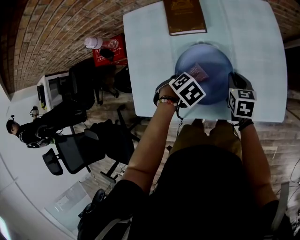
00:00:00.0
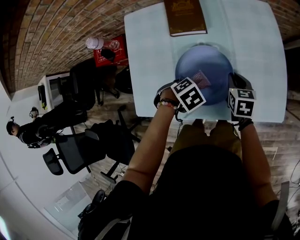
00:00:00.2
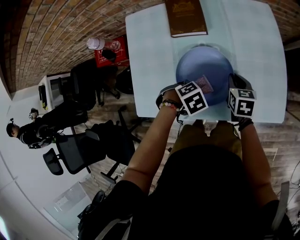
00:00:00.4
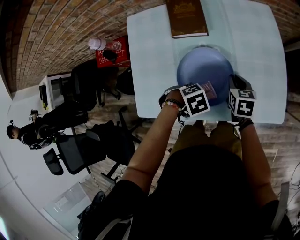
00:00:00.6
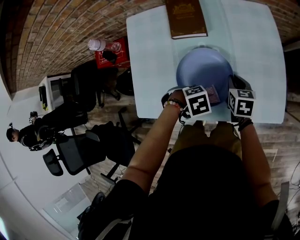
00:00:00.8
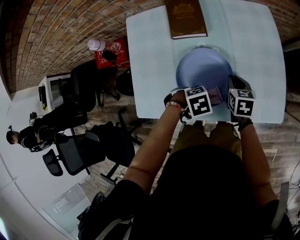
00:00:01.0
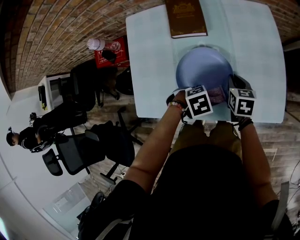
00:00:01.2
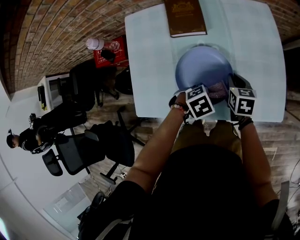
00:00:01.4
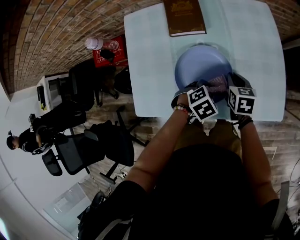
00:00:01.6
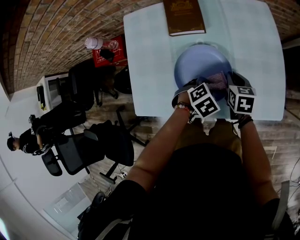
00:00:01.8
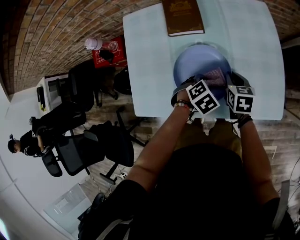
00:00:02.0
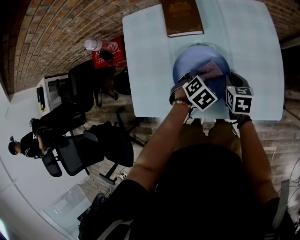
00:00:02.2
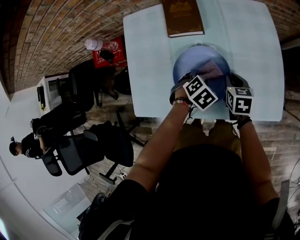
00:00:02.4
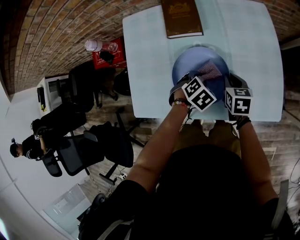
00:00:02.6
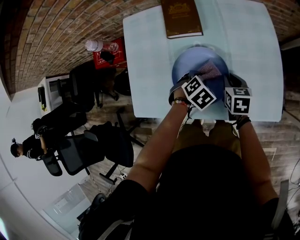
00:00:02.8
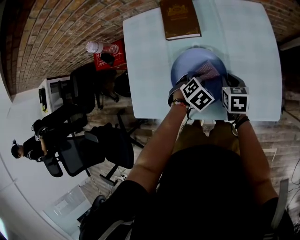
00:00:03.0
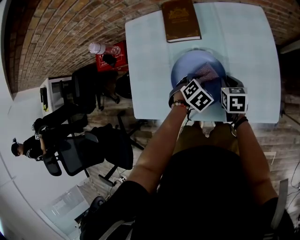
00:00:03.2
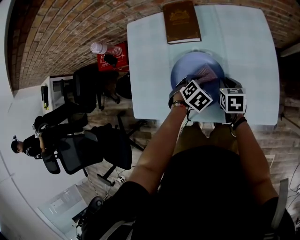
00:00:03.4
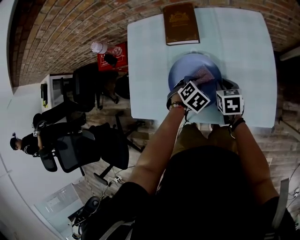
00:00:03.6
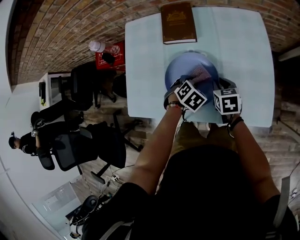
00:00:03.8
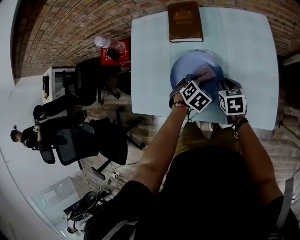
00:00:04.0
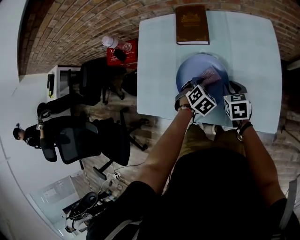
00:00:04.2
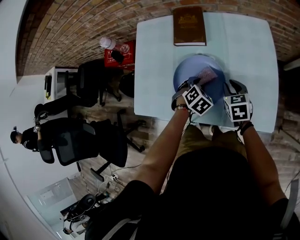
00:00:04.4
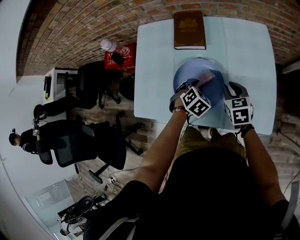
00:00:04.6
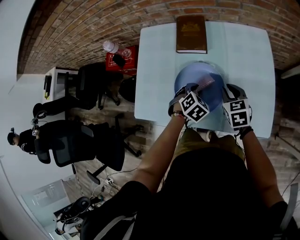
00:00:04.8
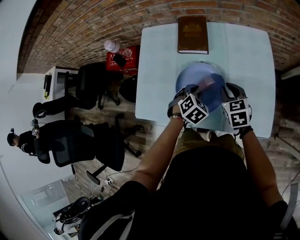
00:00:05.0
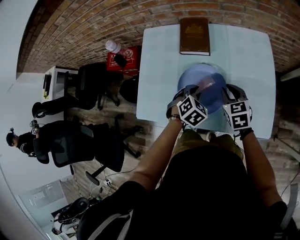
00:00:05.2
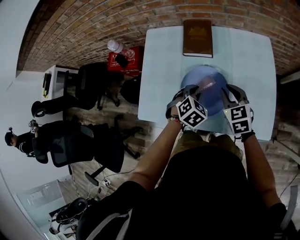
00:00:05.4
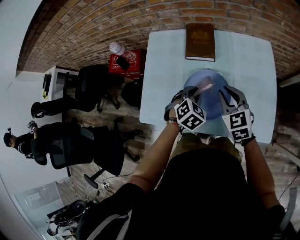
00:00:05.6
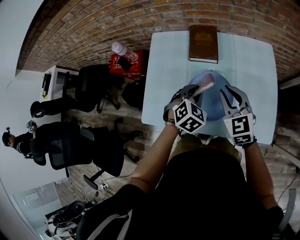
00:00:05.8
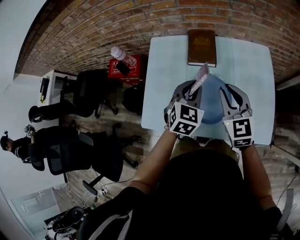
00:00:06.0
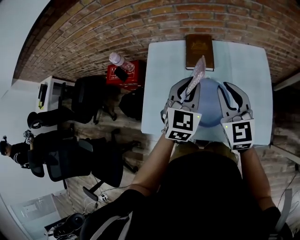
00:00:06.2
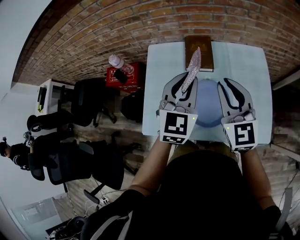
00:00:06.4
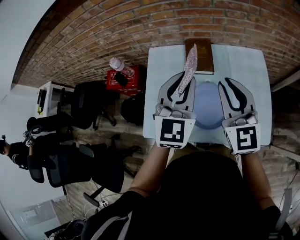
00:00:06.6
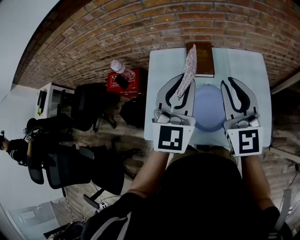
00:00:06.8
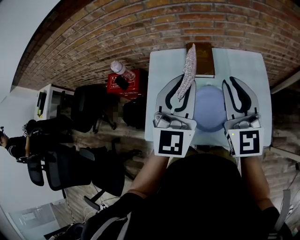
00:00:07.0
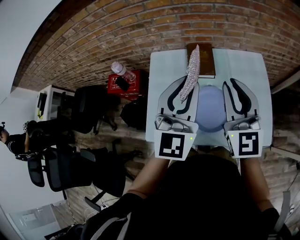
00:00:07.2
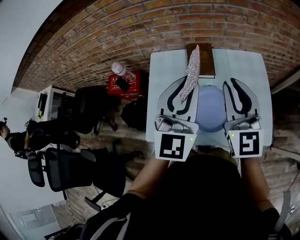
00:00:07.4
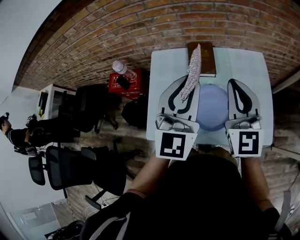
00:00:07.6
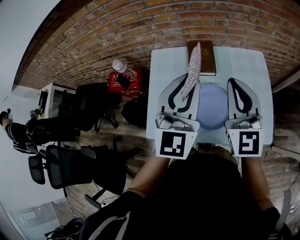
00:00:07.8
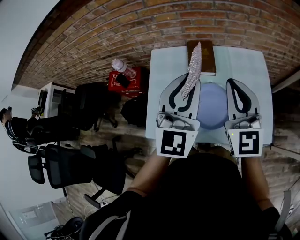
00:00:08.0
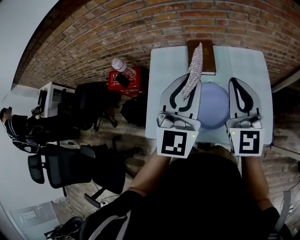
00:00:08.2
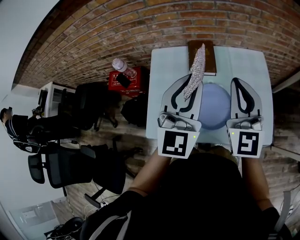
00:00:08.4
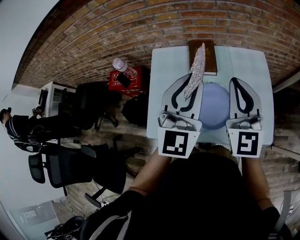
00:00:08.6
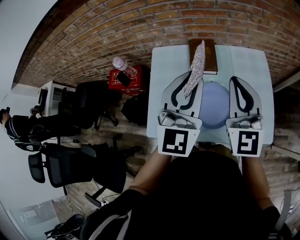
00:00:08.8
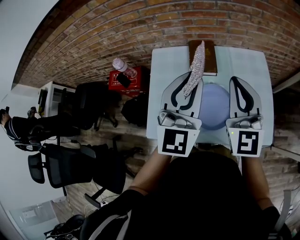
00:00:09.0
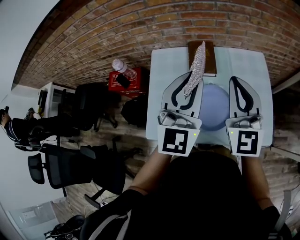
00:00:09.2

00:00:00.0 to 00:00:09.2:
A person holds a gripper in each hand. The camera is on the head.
00:00:00.0 to 00:00:01.6: The left gripper shifts by roughly 10 cm.
00:00:01.6 to 00:00:03.0: The left gripper changes place by approximately 5 cm.
00:00:03.0 to 00:00:04.6: The right gripper is displaced upward by some 5 cm.
00:00:04.6 to 00:00:06.2: The left gripper shifts roughly 25 cm upward, and angles its fingers upward, by about 40 degrees. Meanwhile the right gripper travels upward and to the left by about 25 cm, and points its fingers about 30 degrees further upward.
00:00:06.2 to 00:00:07.6: The grippers both shift upward by about 10 cm. The left gripper turns by some 30 degrees.
00:00:07.6 to 00:00:09.2: The grippers stay close to where they were, moving slightly.

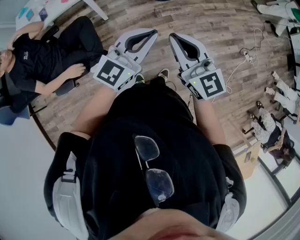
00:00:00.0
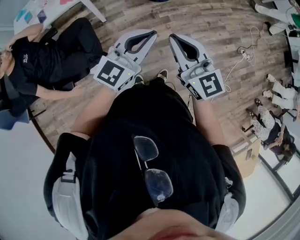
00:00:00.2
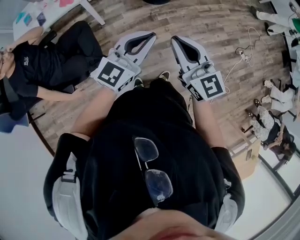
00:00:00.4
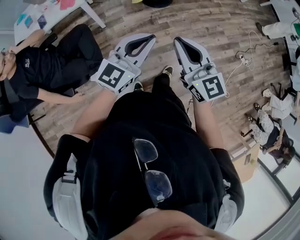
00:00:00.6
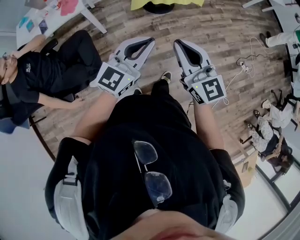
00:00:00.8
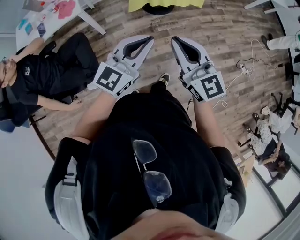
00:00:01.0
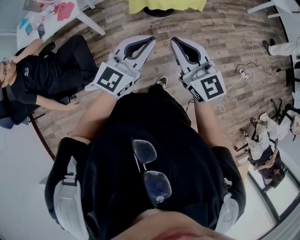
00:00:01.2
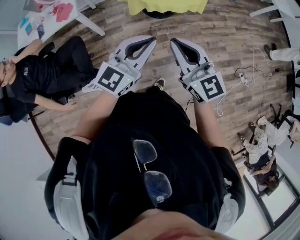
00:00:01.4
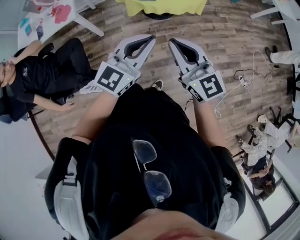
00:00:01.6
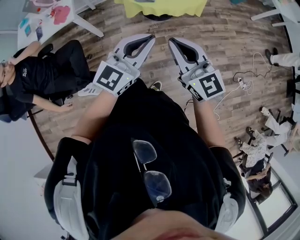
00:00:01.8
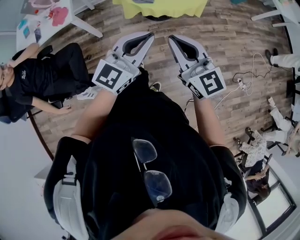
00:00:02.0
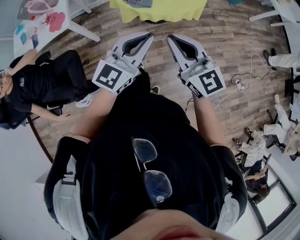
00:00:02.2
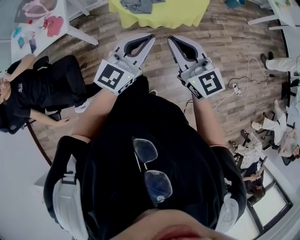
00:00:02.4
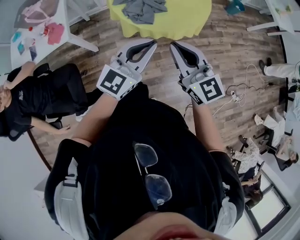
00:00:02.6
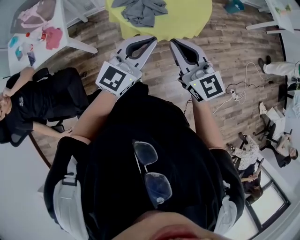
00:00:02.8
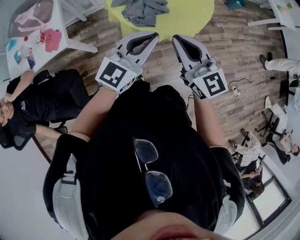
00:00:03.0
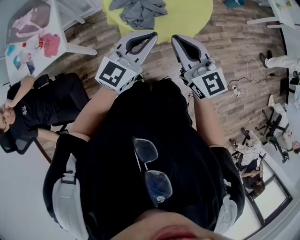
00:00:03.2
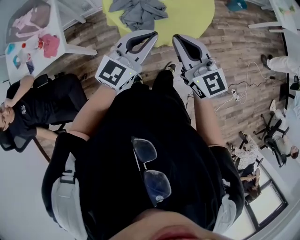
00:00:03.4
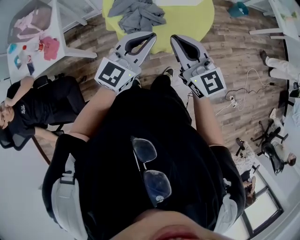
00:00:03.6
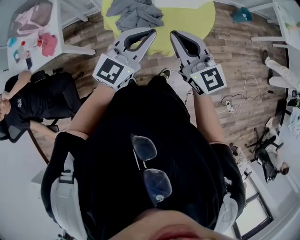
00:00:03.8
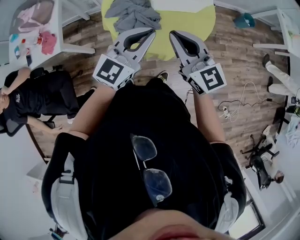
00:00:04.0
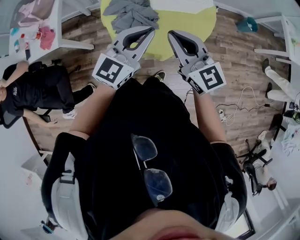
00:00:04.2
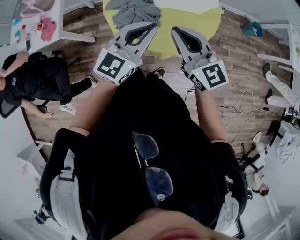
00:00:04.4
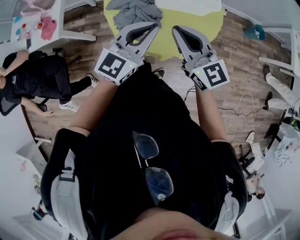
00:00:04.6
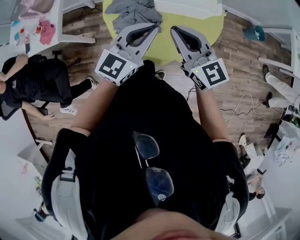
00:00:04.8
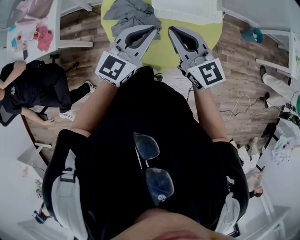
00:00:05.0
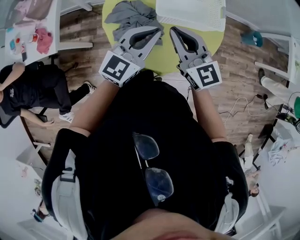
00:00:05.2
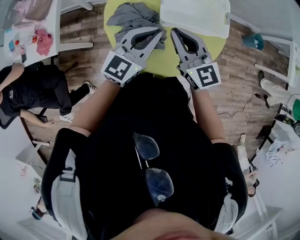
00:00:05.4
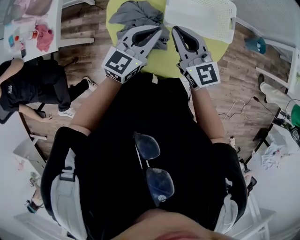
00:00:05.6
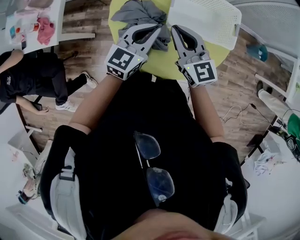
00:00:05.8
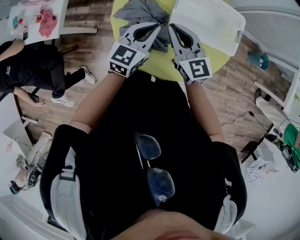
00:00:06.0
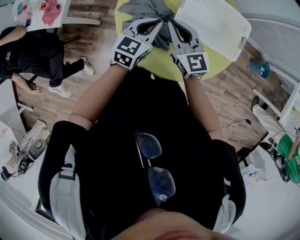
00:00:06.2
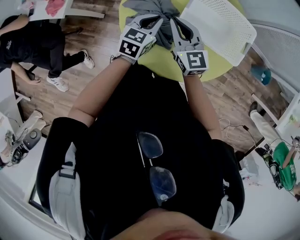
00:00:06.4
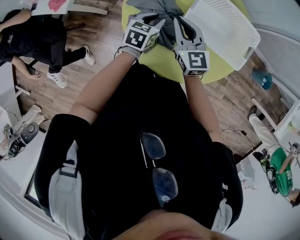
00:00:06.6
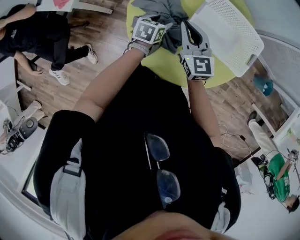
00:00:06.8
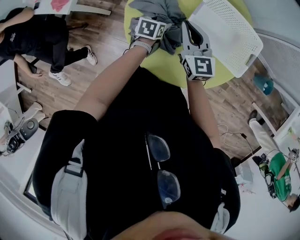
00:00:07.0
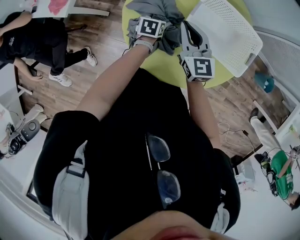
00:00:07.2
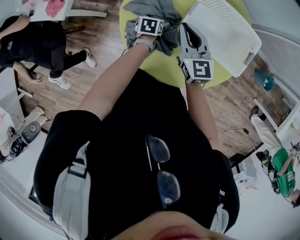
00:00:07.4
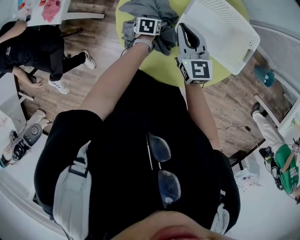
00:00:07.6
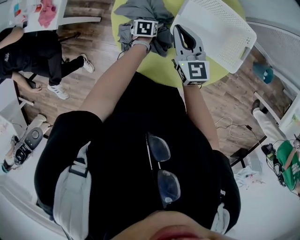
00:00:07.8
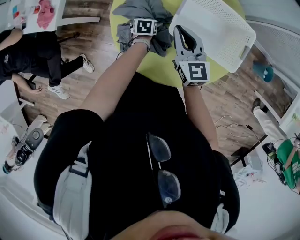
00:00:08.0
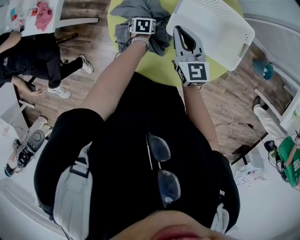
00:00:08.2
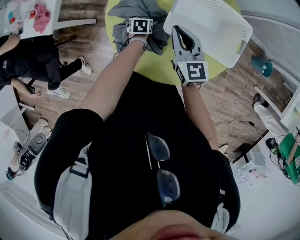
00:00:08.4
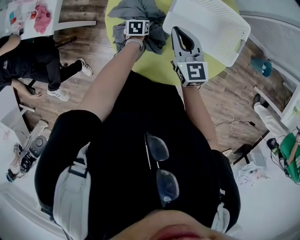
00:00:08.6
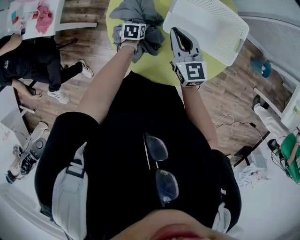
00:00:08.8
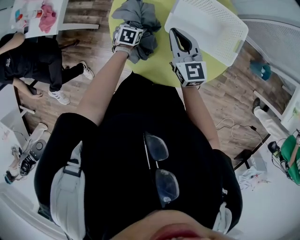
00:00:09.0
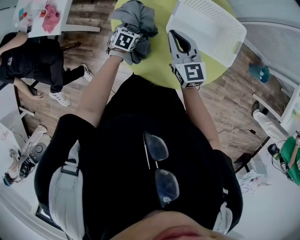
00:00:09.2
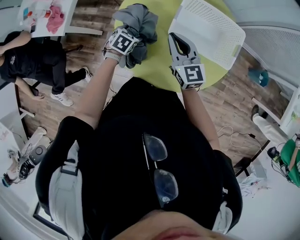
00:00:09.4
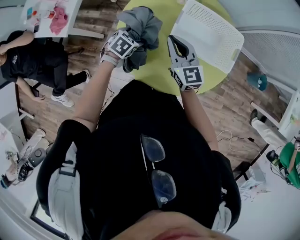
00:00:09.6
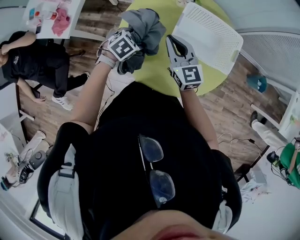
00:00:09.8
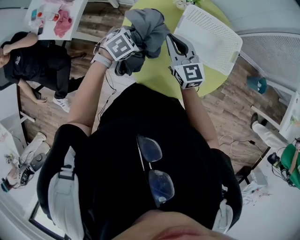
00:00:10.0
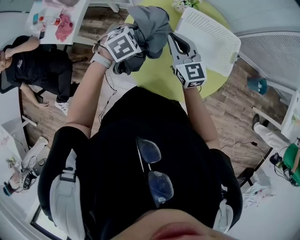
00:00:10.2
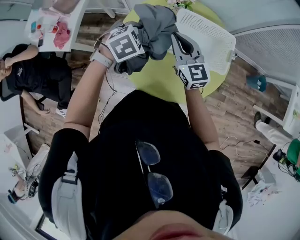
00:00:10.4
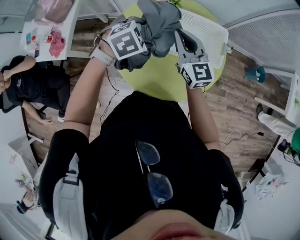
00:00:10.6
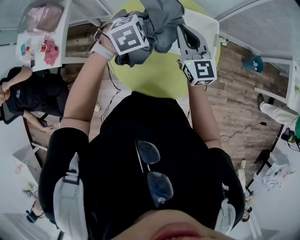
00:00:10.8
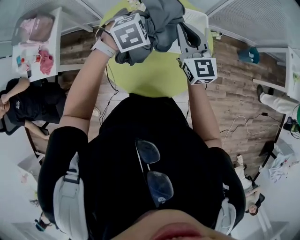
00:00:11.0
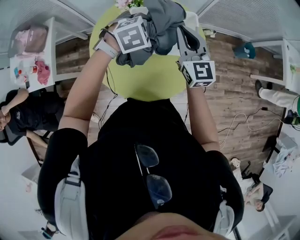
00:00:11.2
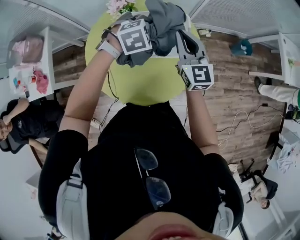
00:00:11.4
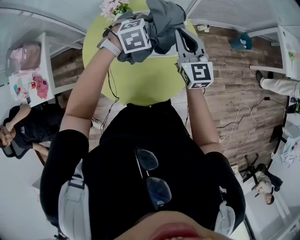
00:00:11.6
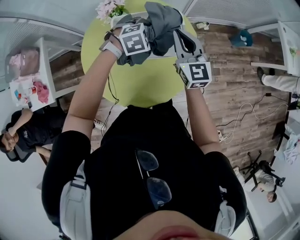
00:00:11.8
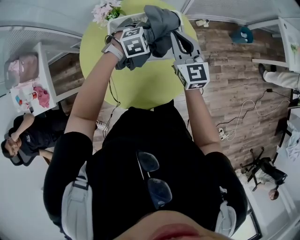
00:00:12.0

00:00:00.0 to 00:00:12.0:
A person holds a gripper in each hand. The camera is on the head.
00:00:00.0 to 00:00:01.6: The two grippers go about 20 cm forward and to the right.
00:00:01.6 to 00:00:03.0: Both grippers move forward, some 25 cm.
00:00:03.0 to 00:00:04.4: The two grippers go approximately 20 cm forward and to the right.
00:00:04.4 to 00:00:06.0: Both grippers move forward and downward, some 25 cm. The left gripper changes its angle by roughly 20 degrees.
00:00:06.0 to 00:00:07.6: The right gripper heads downward, covering approximately 5 cm; the left gripper is displaced downward by about 30 cm, points its fingers about 40 degrees further downward, and opens its fingers.
00:00:07.6 to 00:00:09.0: There are only small adjustments of the grippers.
00:00:09.0 to 00:00:10.4: The left gripper shifts some 25 cm upward, and rotates around the line of its fingers by some 50 degrees, clockwise from behind. The right gripper heads upward, covering some 10 cm.
00:00:10.4 to 00:00:12.0: The right gripper ends up some 25 cm from where it was, and changes its angle by about 30 degrees. The left gripper moves roughly 30 cm, and turns by about 30 degrees.

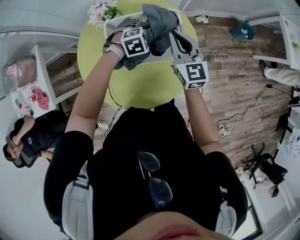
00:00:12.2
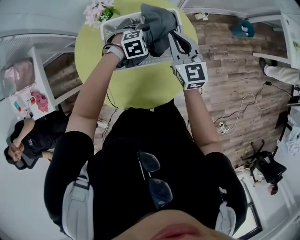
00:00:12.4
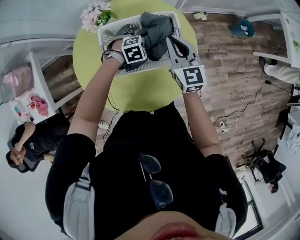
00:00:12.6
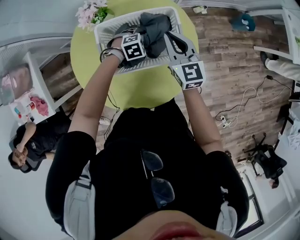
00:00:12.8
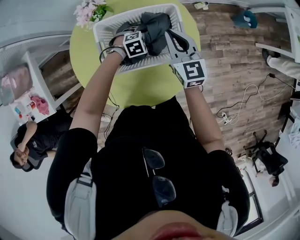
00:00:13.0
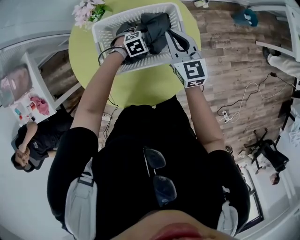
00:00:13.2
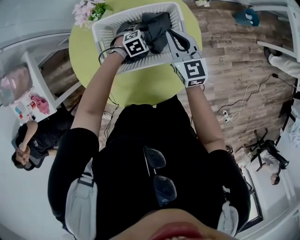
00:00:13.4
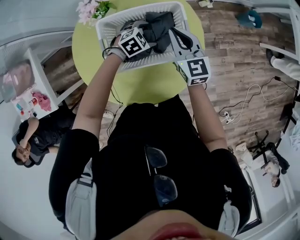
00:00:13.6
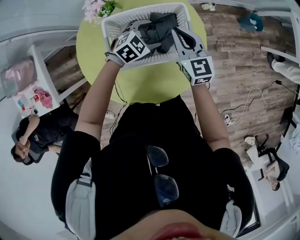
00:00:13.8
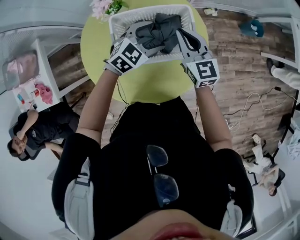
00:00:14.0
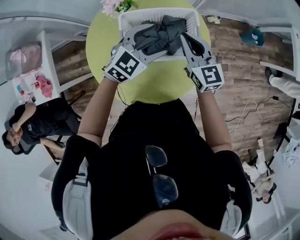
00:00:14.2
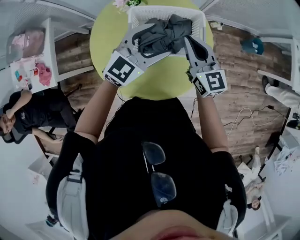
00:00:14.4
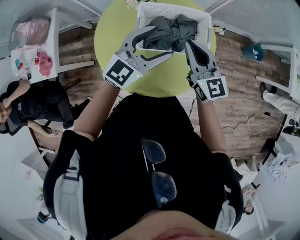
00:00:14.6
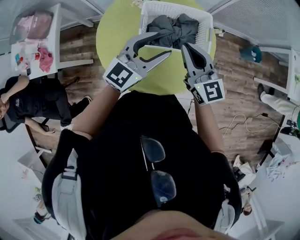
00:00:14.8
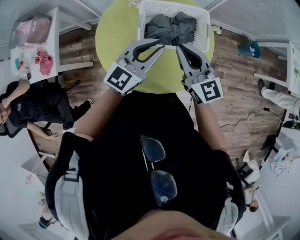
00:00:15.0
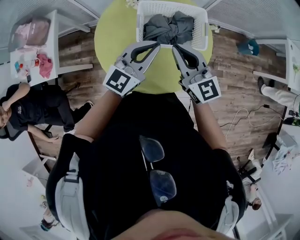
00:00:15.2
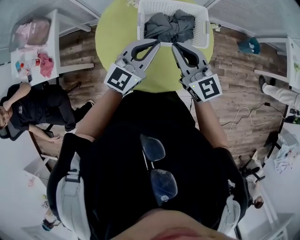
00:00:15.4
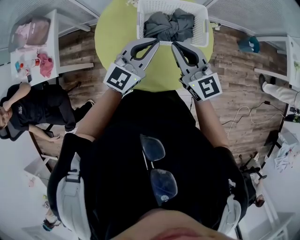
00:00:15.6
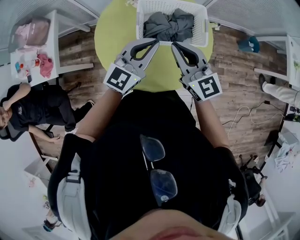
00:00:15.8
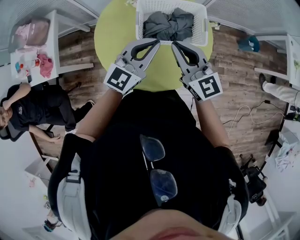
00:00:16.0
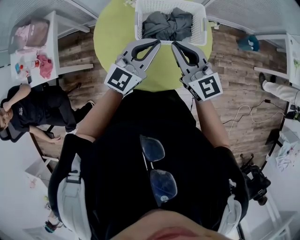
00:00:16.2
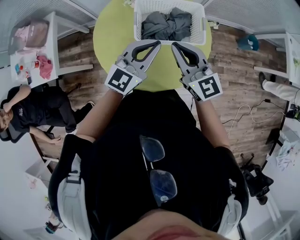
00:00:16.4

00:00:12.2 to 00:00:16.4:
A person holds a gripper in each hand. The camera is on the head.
00:00:12.2 to 00:00:13.6: Both grippers travel together downward, approximately 10 cm.
00:00:13.6 to 00:00:15.0: The left gripper shifts some 30 cm upward, points its fingers some 60 degrees further upward, and closes. The right gripper changes place by some 25 cm, and rotates approximately 20 degrees.
00:00:15.0 to 00:00:16.4: The grippers move only a little.
